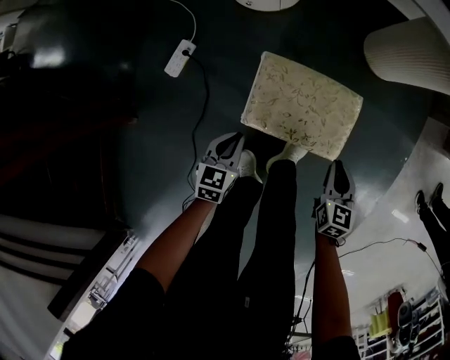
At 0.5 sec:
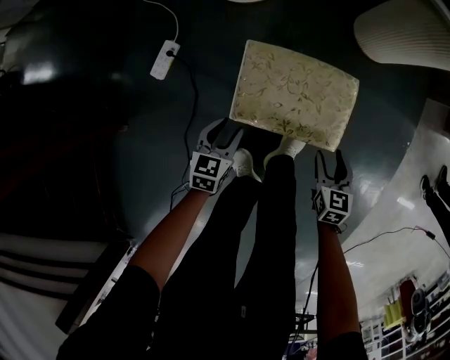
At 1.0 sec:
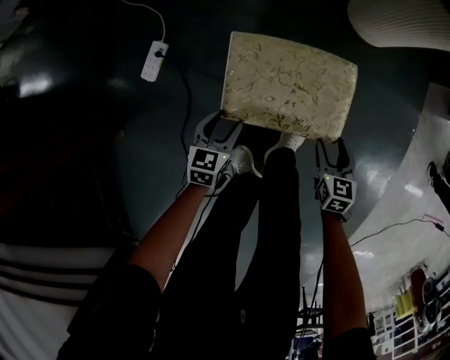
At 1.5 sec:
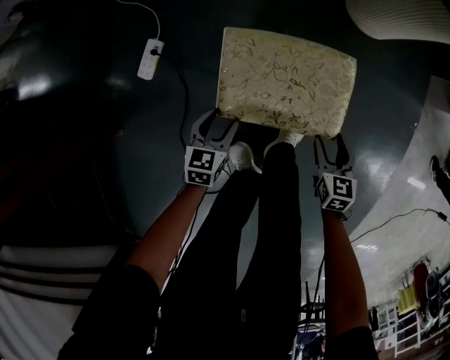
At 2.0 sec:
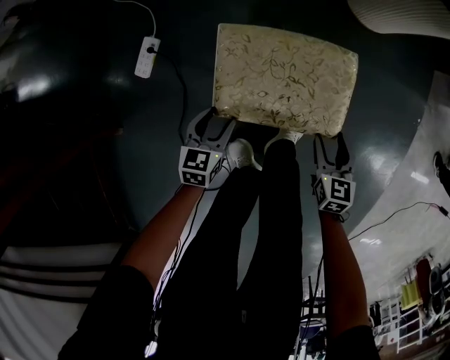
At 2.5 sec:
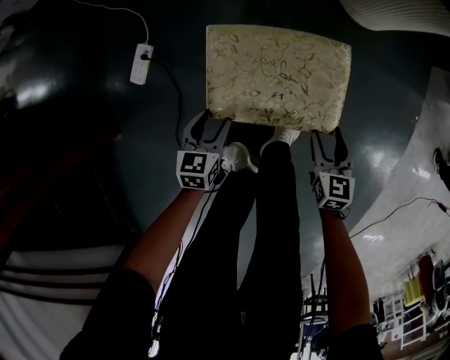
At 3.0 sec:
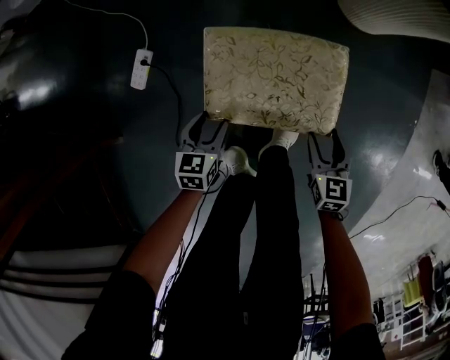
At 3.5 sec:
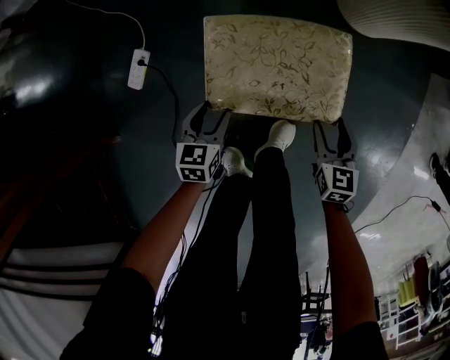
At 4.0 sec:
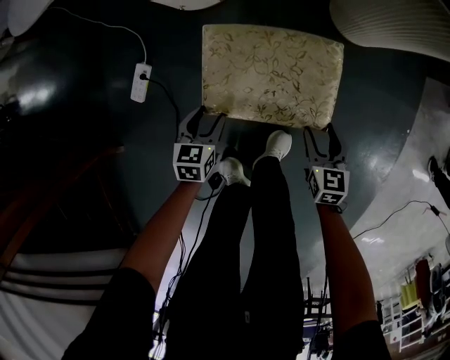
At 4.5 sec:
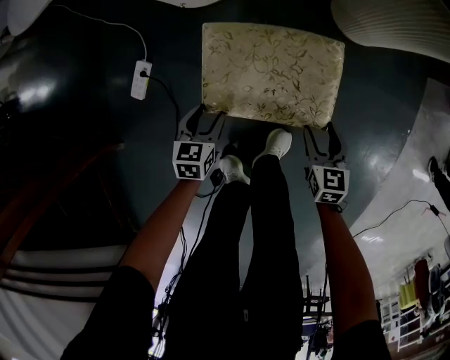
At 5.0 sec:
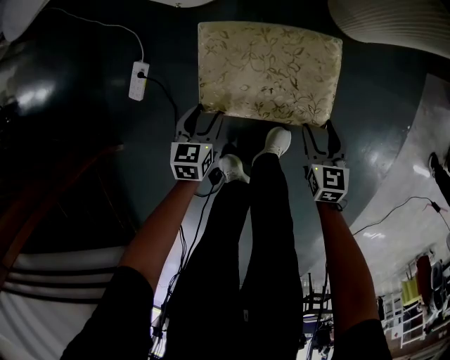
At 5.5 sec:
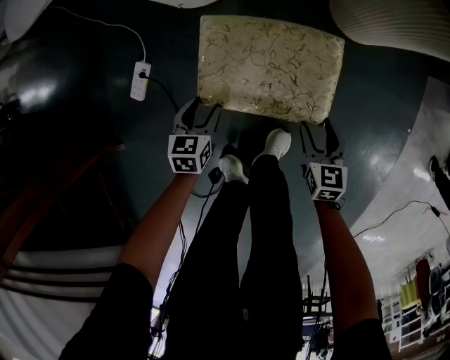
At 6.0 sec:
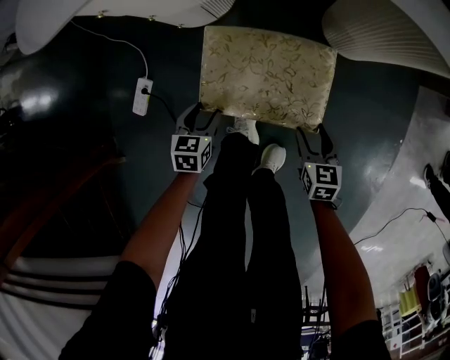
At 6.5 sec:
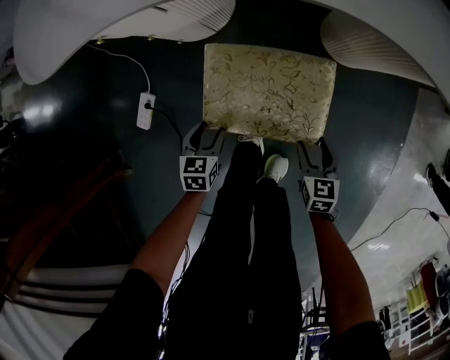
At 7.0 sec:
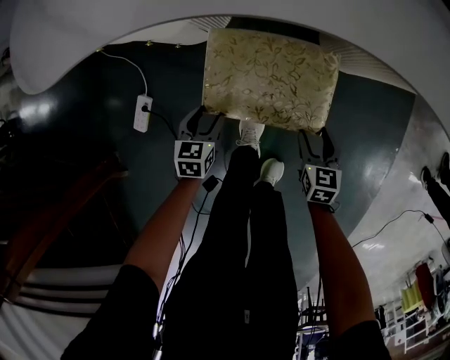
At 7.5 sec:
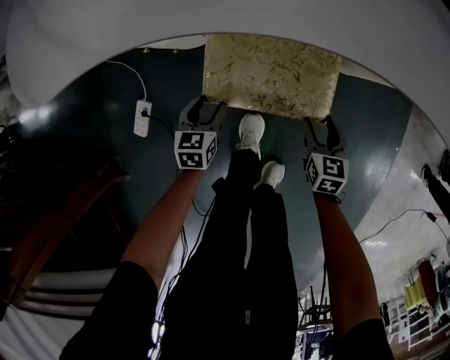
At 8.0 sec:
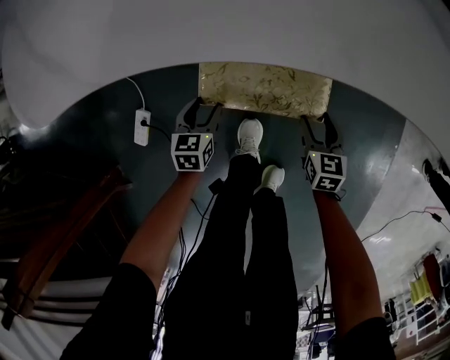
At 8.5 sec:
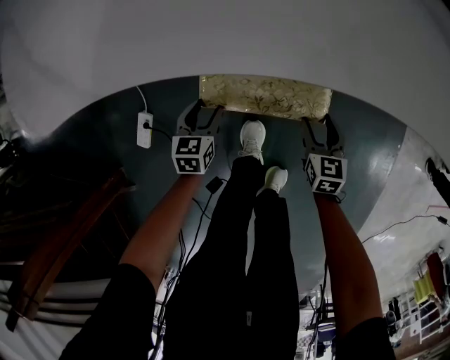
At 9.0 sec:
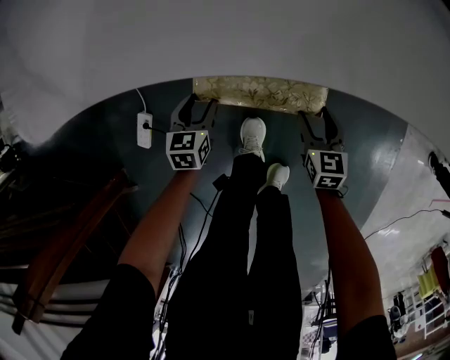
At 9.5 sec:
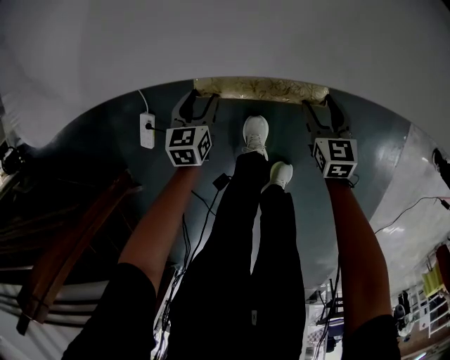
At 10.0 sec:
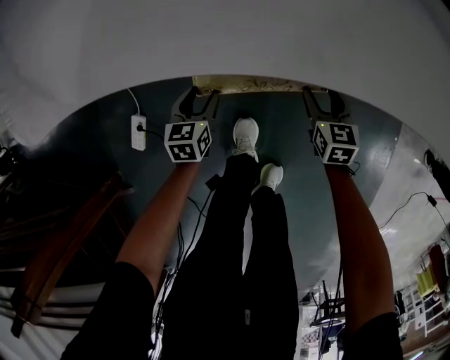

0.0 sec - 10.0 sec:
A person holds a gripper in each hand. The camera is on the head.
0.0 sec - 2.0 sec: The two grippers go approximately 10 cm downward. The left gripper opens. The right gripper opens its fingers.
2.0 sec - 4.0 sec: The grippers make only small movements.
4.0 sec - 6.0 sec: The two grippers keep their place.
6.0 sec - 8.0 sec: Both grippers move forward, roughly 15 cm.
8.0 sec - 10.0 sec: The right gripper goes roughly 10 cm forward. The left gripper moves some 5 cm.

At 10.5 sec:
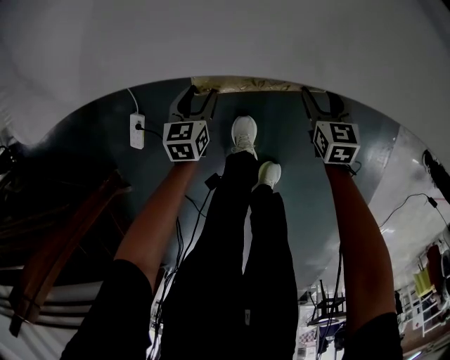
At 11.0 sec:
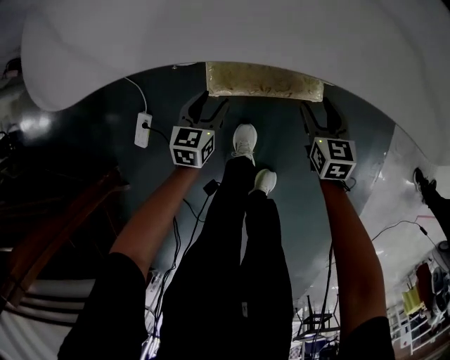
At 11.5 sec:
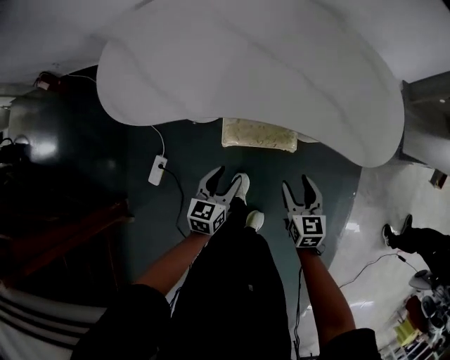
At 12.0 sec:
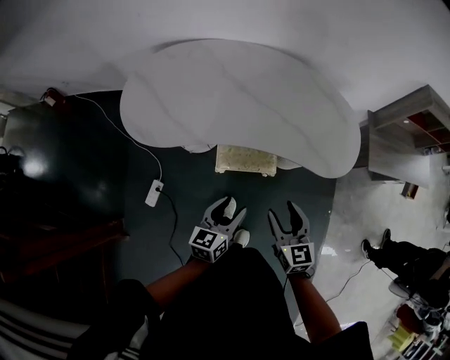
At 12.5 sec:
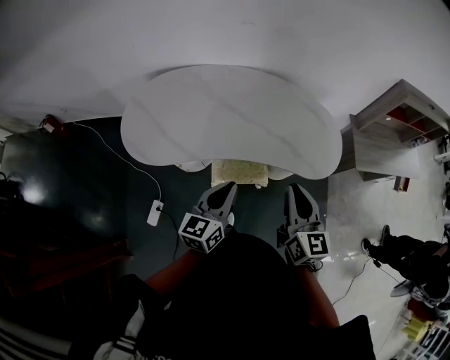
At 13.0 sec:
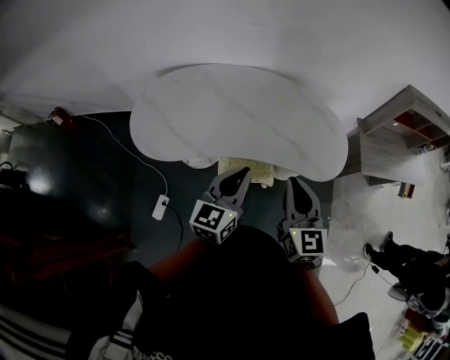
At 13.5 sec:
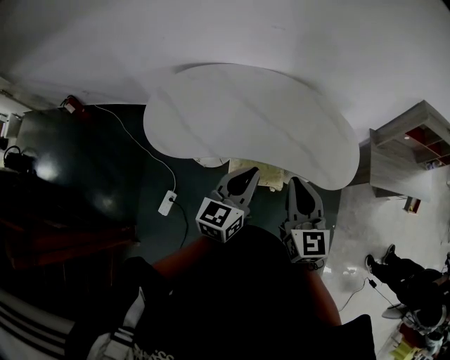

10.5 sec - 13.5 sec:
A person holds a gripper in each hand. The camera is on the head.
10.5 sec - 12.0 sec: The two grippers go roughly 60 cm upward. The left gripper changes its angle by about 30 degrees. Meanwhile the right gripper rotates about 20 degrees.
12.0 sec - 13.5 sec: The right gripper is displaced upward by approximately 20 cm, and closes up, while the left gripper shifts some 25 cm upward and forward, and closes up.

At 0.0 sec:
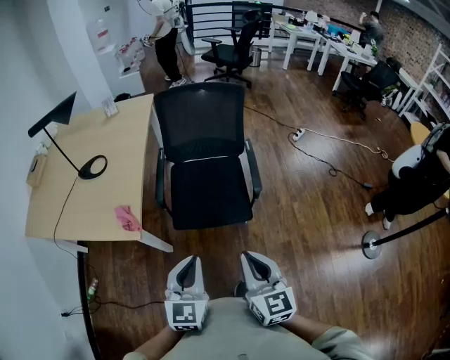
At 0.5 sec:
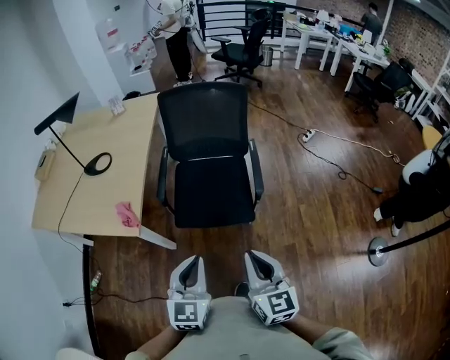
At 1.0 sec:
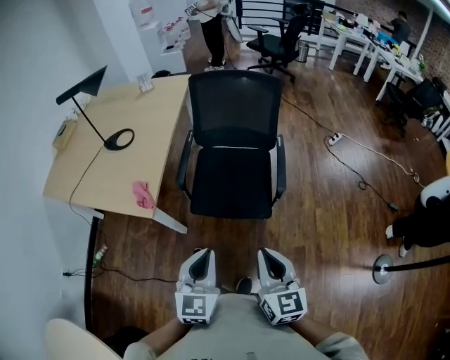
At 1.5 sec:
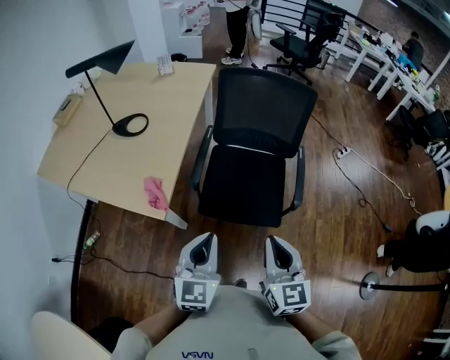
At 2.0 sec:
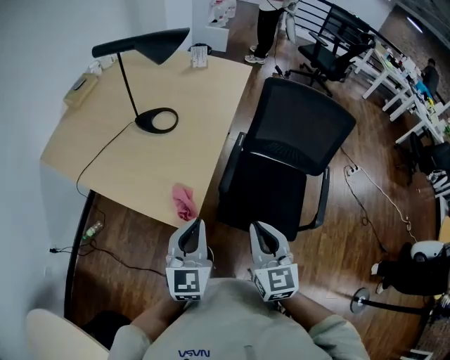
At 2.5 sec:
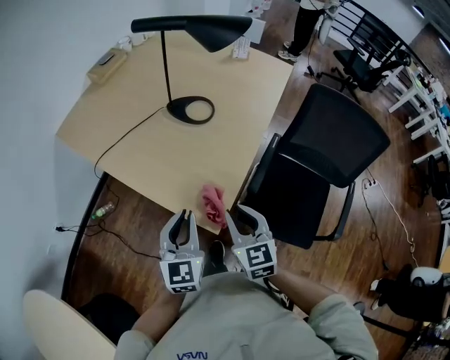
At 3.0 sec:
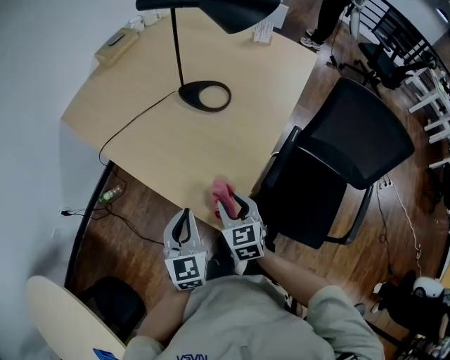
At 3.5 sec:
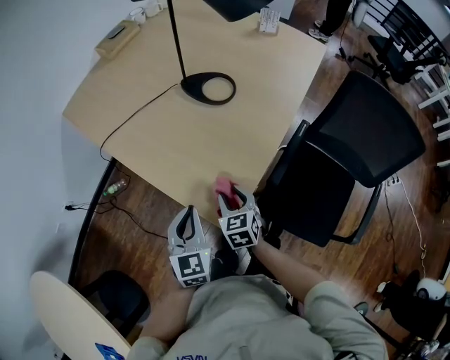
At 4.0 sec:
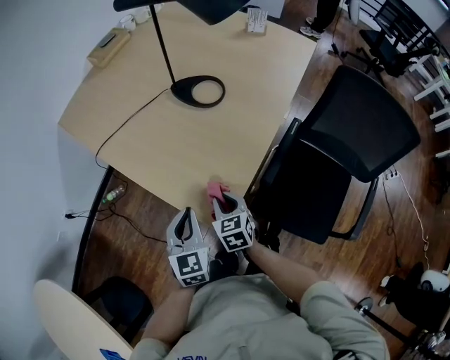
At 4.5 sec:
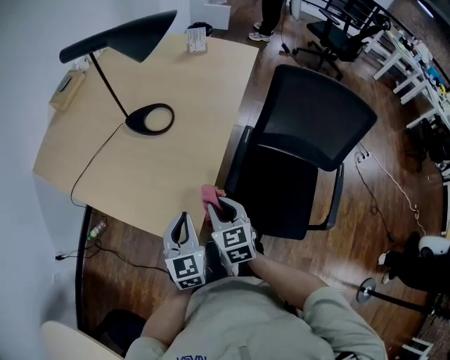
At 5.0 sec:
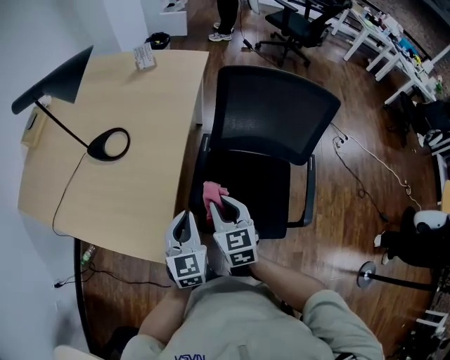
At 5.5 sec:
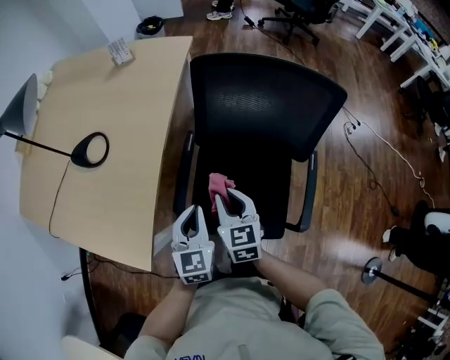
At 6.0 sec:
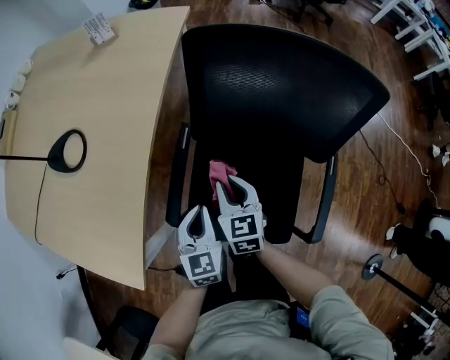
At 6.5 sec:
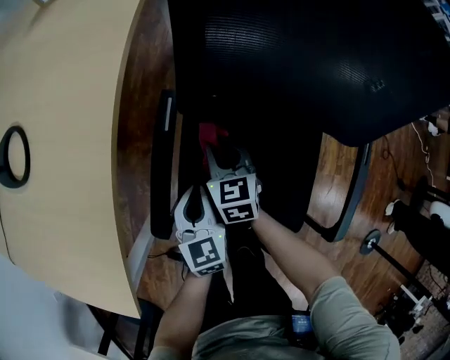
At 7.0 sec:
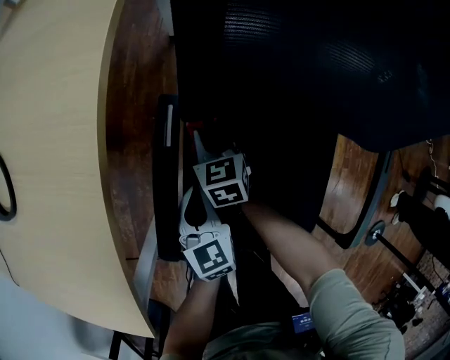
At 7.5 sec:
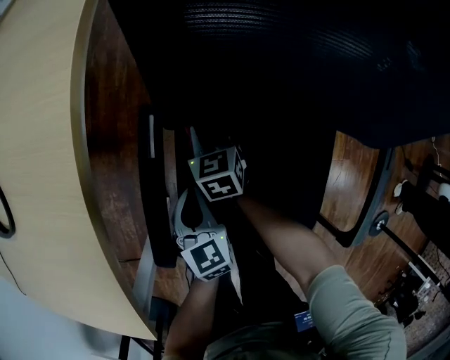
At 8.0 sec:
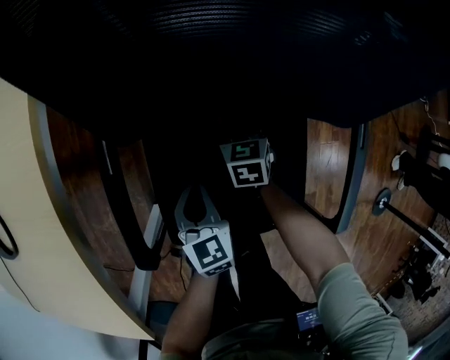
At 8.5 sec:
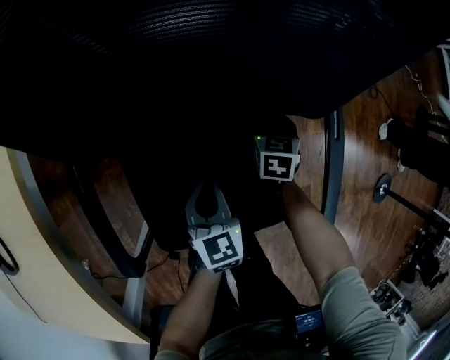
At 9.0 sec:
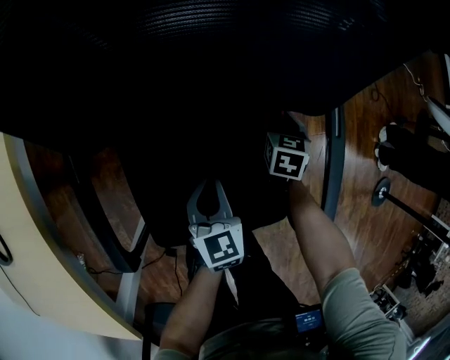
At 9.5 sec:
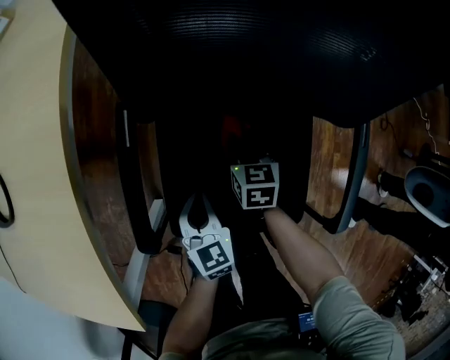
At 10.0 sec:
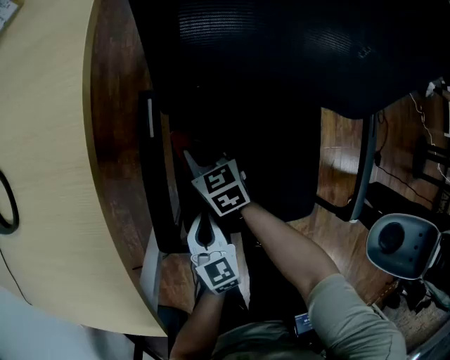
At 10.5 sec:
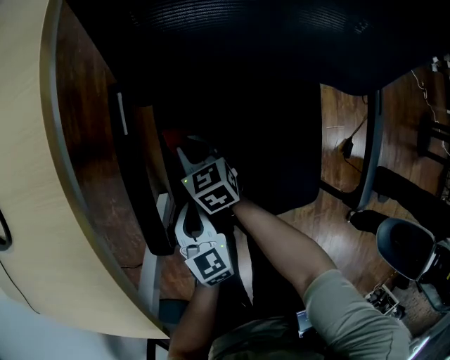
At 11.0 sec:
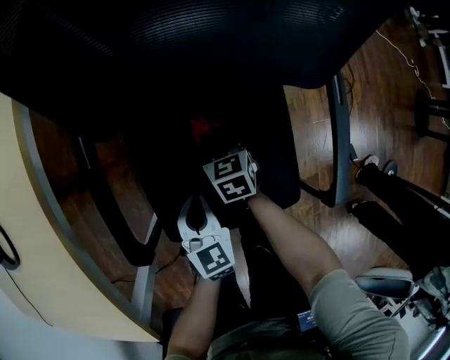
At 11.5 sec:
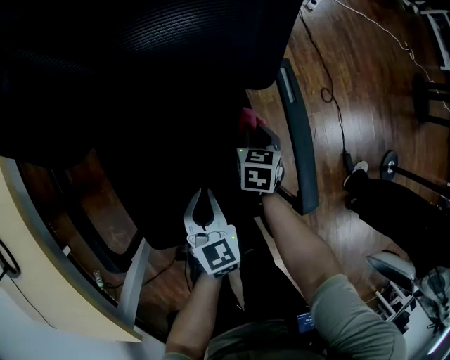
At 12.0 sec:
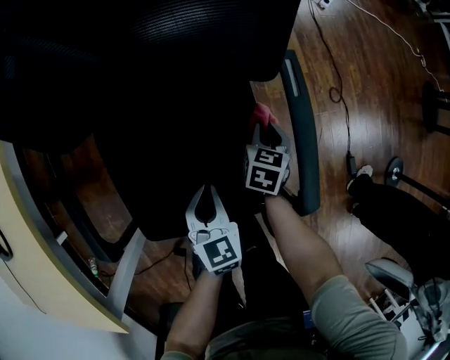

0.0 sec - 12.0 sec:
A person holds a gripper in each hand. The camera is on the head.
0.0 sec - 2.0 sec: The left gripper shifts approximately 30 cm to the left and forward, and changes its angle by roughly 20 degrees. Meanwhile the right gripper shifts roughly 30 cm forward and to the left, and swivels approximately 20 degrees.
2.0 sec - 4.0 sec: The left gripper shifts by some 20 cm, and changes its angle by roughly 30 degrees, while the right gripper heads downward, covering some 25 cm, changes its angle by some 30 degrees, and opens, then closes again.
4.0 sec - 6.0 sec: Both grippers are carried about 40 cm. The right gripper swivels roughly 30 degrees. Meanwhile the left gripper turns by some 20 degrees.
6.0 sec - 8.0 sec: The two grippers go approximately 25 cm downward and to the right. The right gripper changes its angle by some 30 degrees.
8.0 sec - 10.0 sec: The right gripper shifts by about 25 cm, and turns by some 20 degrees, while the left gripper ends up some 15 cm from where it was.
10.0 sec - 12.0 sec: The left gripper shifts by approximately 25 cm. Meanwhile the right gripper ends up some 50 cm from where it was, and changes its angle by roughly 50 degrees.

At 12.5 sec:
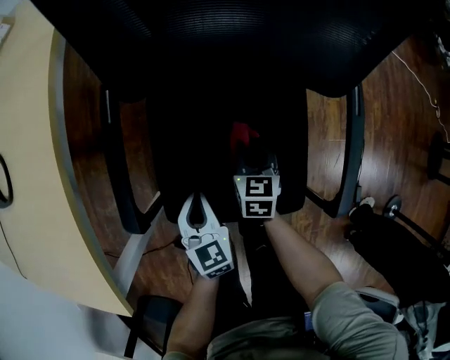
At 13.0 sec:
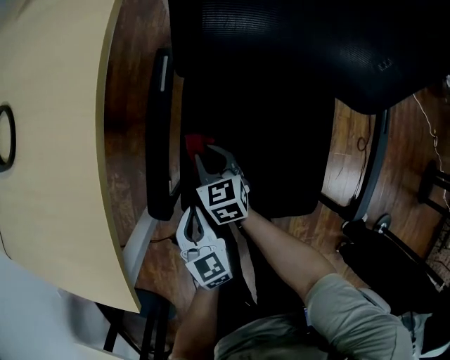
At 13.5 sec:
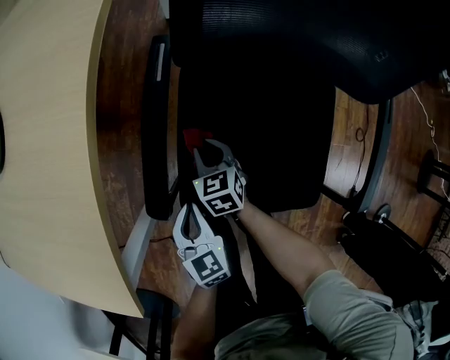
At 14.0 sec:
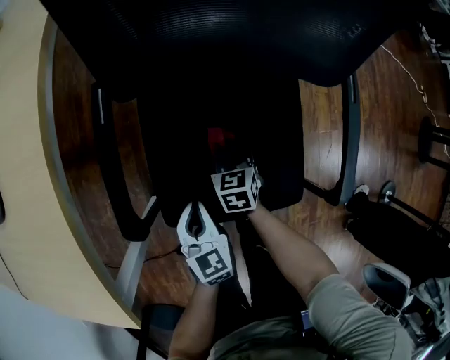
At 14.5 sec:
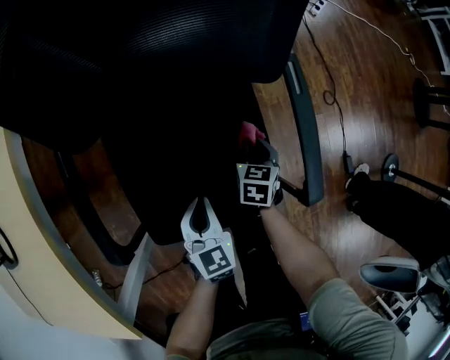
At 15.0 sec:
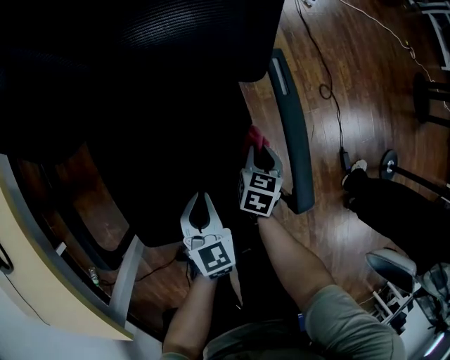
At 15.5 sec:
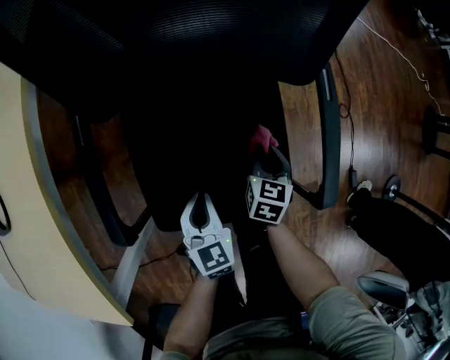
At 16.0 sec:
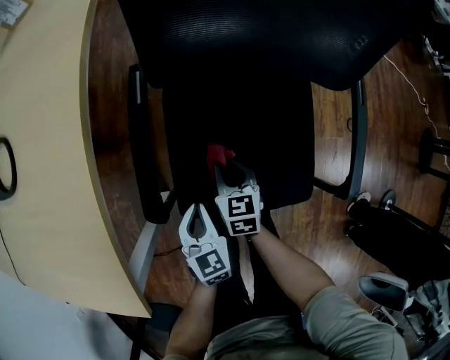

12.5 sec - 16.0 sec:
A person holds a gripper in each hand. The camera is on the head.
12.5 sec - 14.5 sec: The right gripper ends up some 15 cm from where it was, and turns by some 20 degrees; the left gripper moves some 10 cm.
14.5 sec - 16.0 sec: The left gripper moves roughly 20 cm, while the right gripper shifts by some 30 cm, and turns by some 30 degrees.
